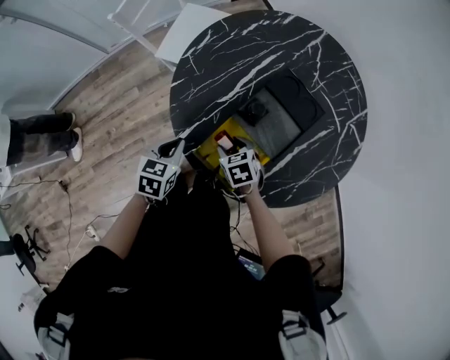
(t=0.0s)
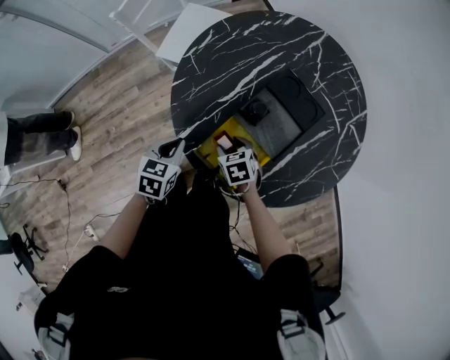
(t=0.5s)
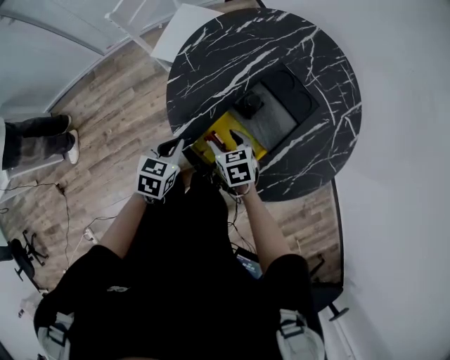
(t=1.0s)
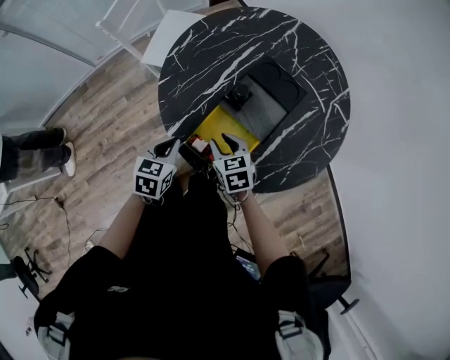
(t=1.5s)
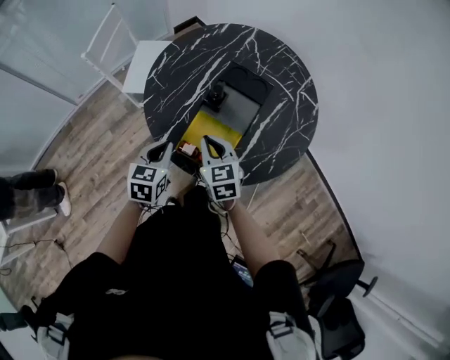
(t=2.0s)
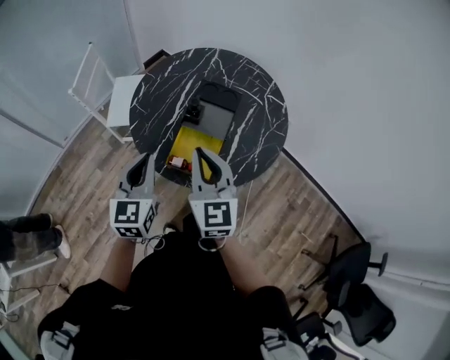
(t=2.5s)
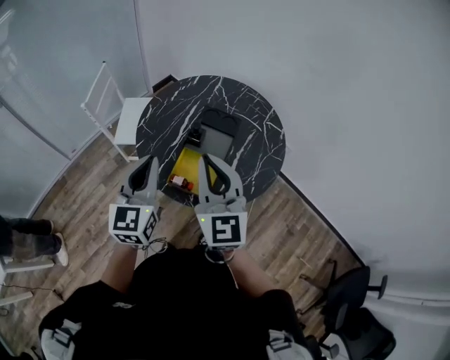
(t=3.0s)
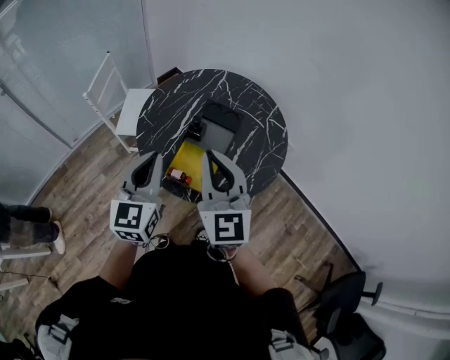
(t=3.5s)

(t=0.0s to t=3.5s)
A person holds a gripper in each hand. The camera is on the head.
t=0.0s - t=2.0s: The left gripper goes about 10 cm upward; the right gripper goes some 15 cm upward, turns by roughly 40 degrees, and closes its fingers.
t=2.0s - t=3.5s: Both grippers travel together upward, about 25 cm. The left gripper angles its fingers upward, by some 30 degrees, while the right gripper tilts its fingers approximately 30 degrees upward.

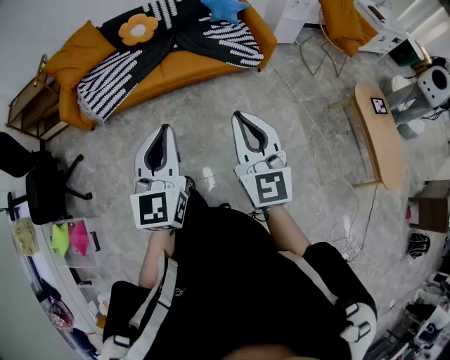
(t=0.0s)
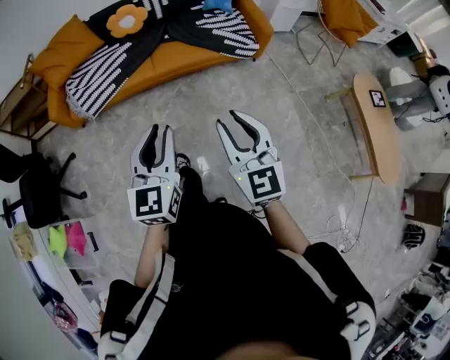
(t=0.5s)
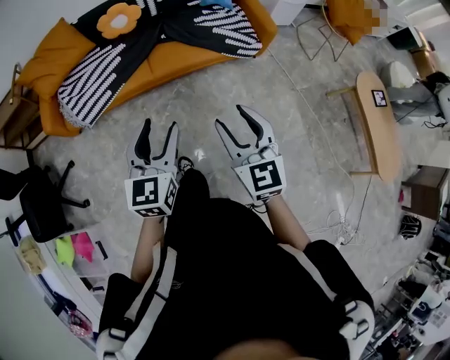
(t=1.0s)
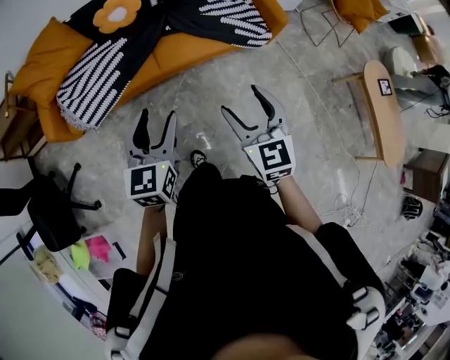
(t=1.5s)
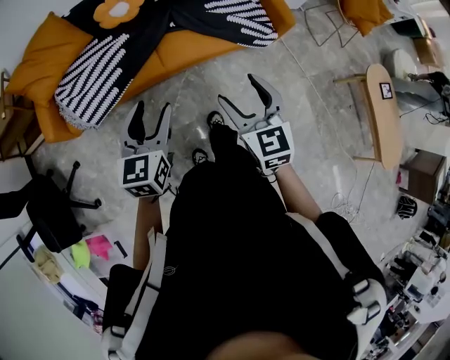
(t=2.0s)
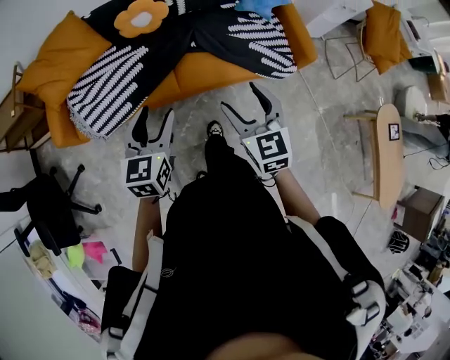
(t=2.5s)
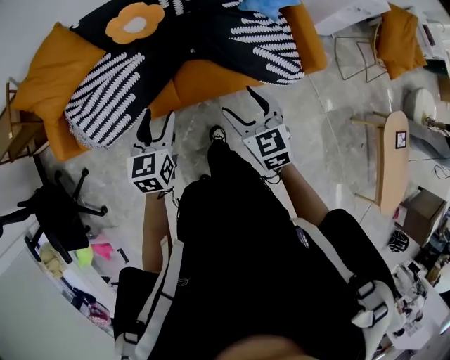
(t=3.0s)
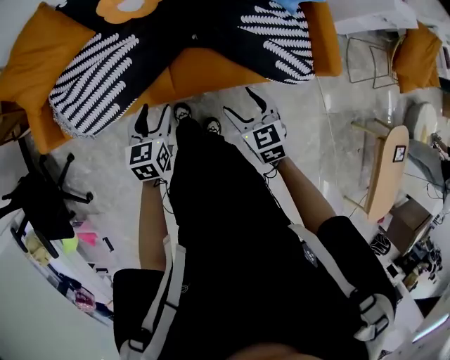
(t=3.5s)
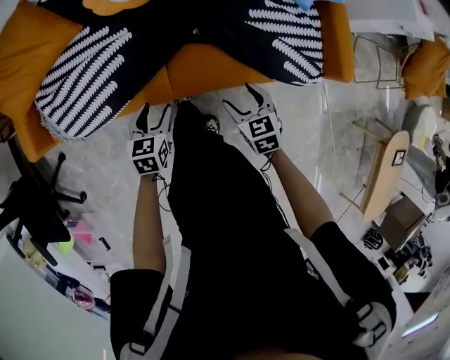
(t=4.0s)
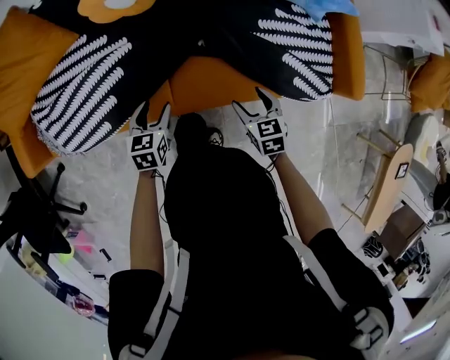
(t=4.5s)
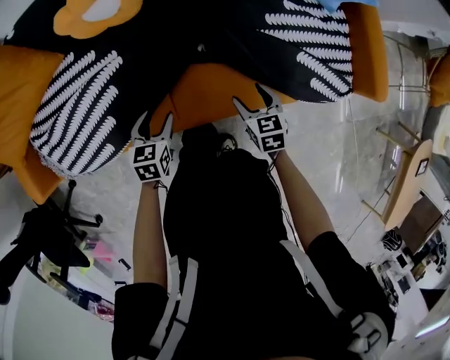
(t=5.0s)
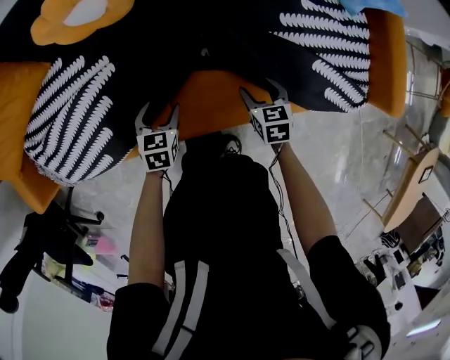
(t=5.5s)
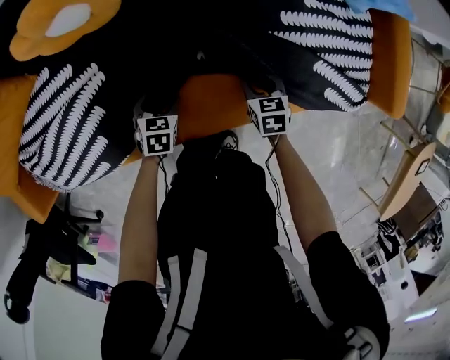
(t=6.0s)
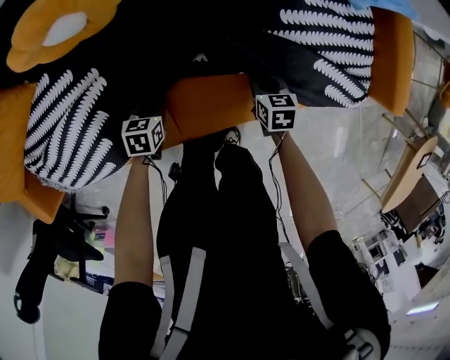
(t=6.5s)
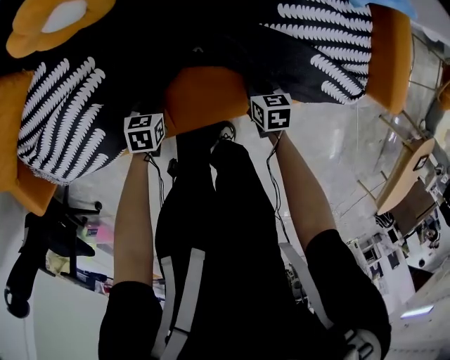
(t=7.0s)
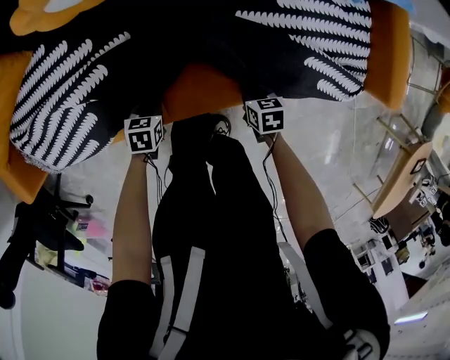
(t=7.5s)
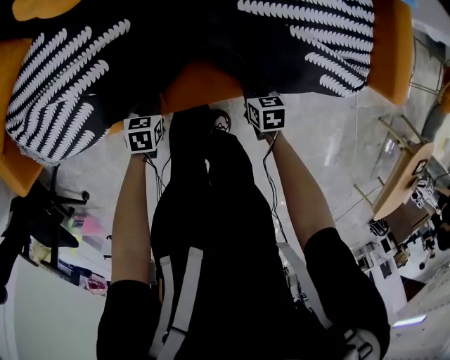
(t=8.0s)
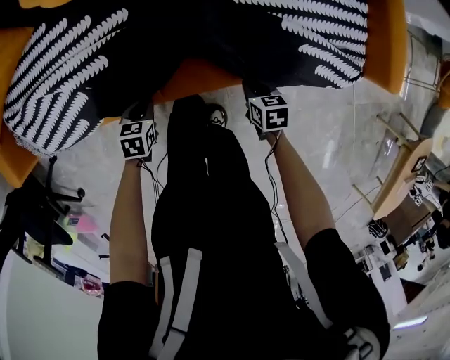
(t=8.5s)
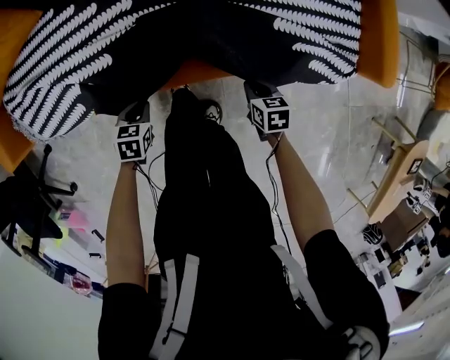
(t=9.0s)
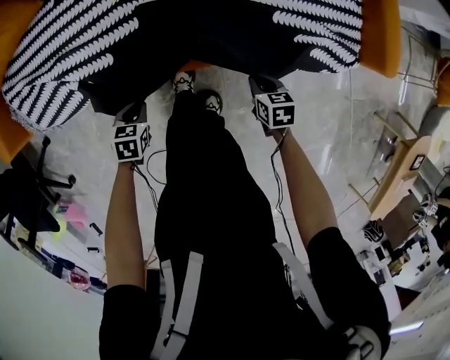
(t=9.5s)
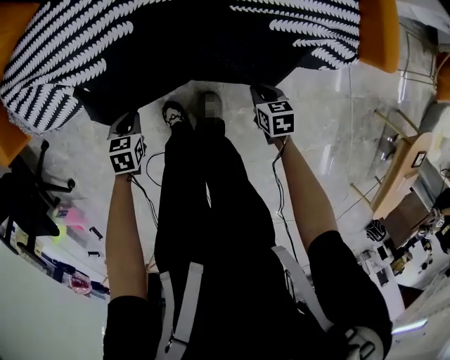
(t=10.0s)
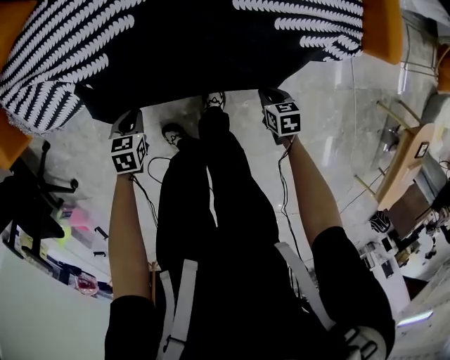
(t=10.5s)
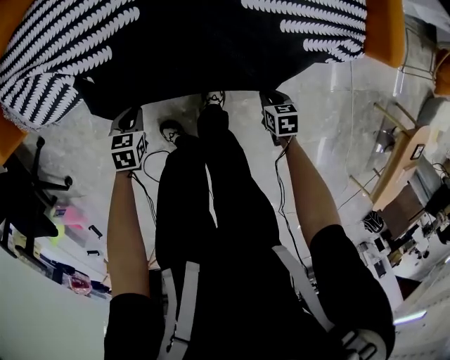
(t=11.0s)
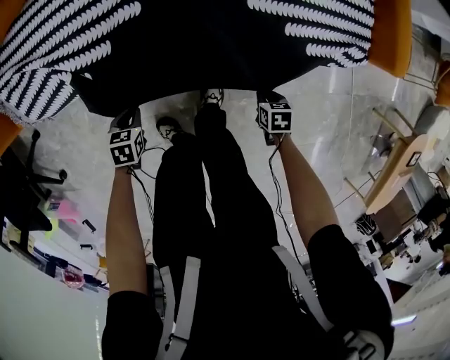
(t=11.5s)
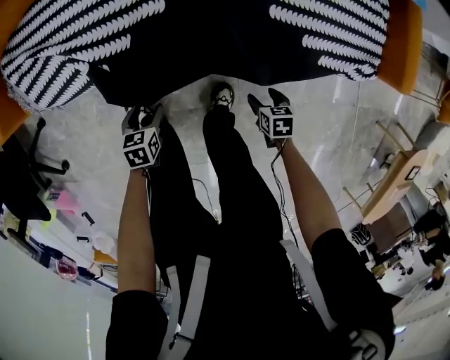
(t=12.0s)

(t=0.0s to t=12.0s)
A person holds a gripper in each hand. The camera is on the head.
t=0.0s - t=2.0s: The right gripper shifts some 35 cm forward, swivels roughly 20 degrees, and opens its fingers. The left gripper travels forward and to the left by some 40 cm, rotates approximately 20 degrees, and opens.
t=2.0s - t=4.0s: The right gripper heads forward and downward, covering approximately 50 cm, and swivels about 30 degrees. Meanwhile the left gripper shifts approximately 50 cm downward and forward, and swivels about 30 degrees.
t=4.0s - t=6.0s: Both grippers travel together downward and forward, some 35 cm. The right gripper changes its angle by approximately 20 degrees, and closes up. The left gripper turns by approximately 30 degrees.
t=6.0s - t=8.0s: Both grippers travel together backward, about 15 cm. The left gripper closes. The right gripper closes.
t=8.0s - t=10.0s: The left gripper shifts roughly 15 cm backward and upward, while the right gripper moves backward, approximately 15 cm.
t=10.0s - t=12.0s: The right gripper ends up roughly 5 cm from where it was, and opens up; the left gripper opens its fingers.

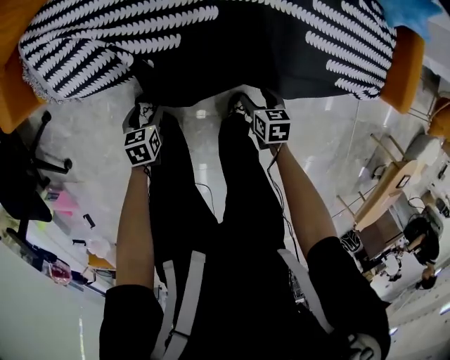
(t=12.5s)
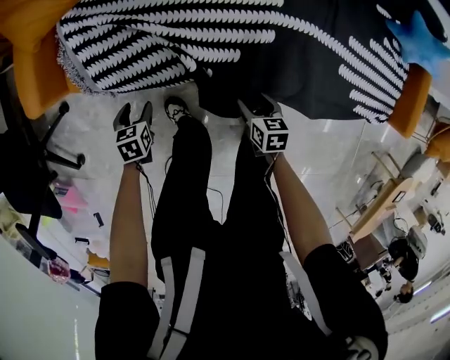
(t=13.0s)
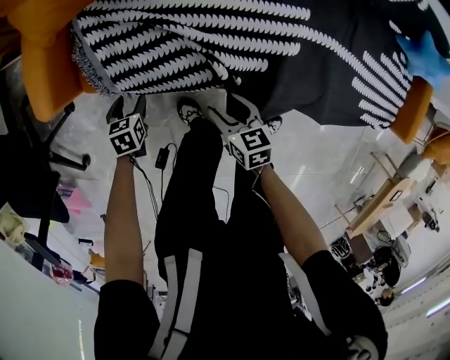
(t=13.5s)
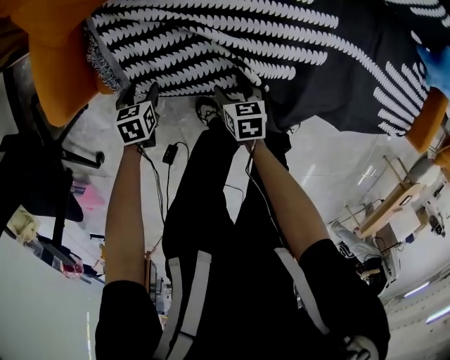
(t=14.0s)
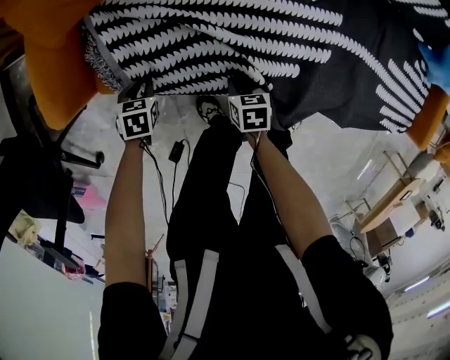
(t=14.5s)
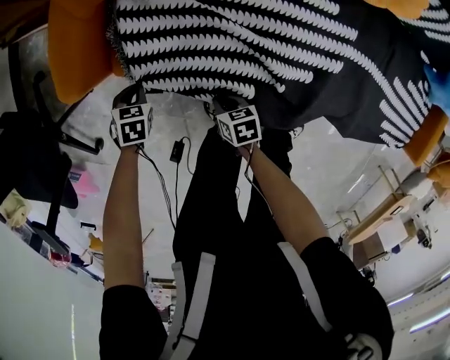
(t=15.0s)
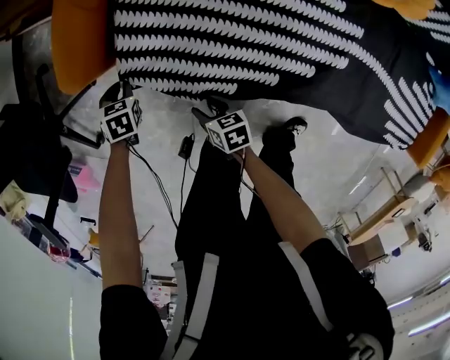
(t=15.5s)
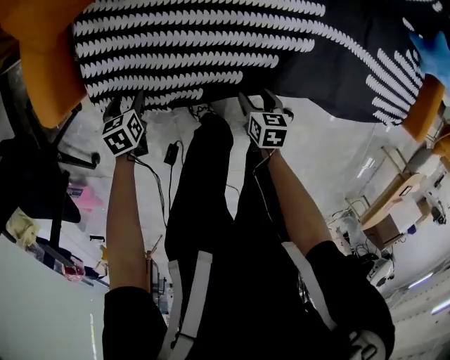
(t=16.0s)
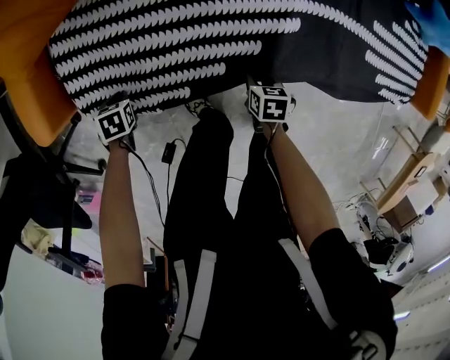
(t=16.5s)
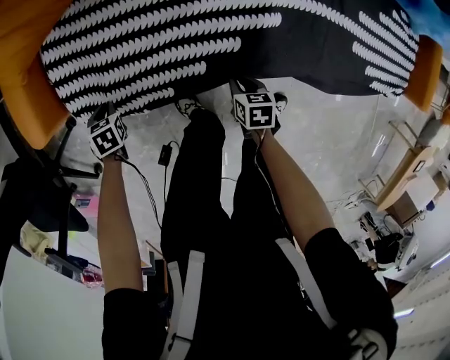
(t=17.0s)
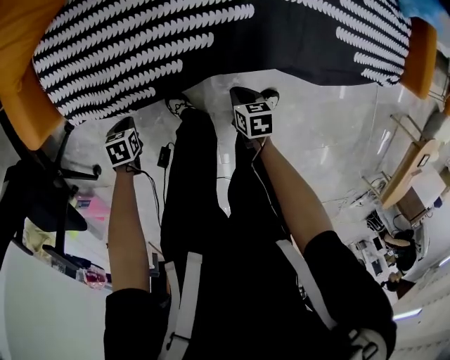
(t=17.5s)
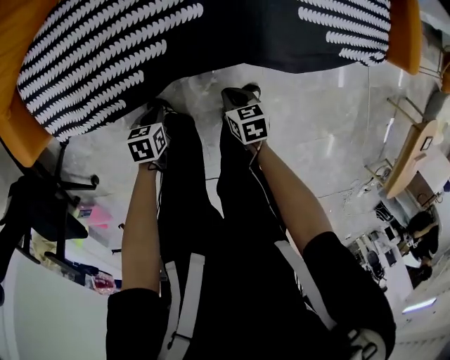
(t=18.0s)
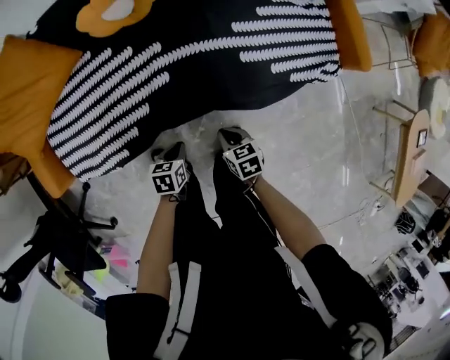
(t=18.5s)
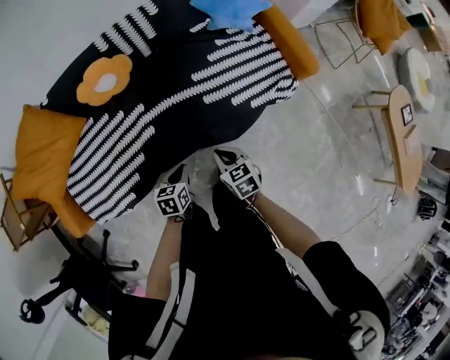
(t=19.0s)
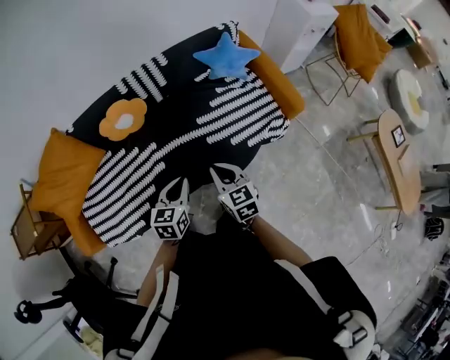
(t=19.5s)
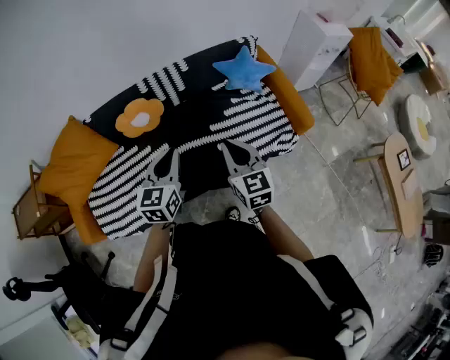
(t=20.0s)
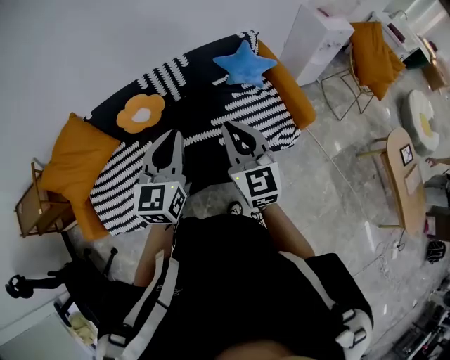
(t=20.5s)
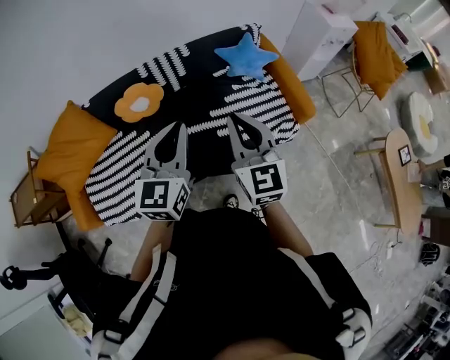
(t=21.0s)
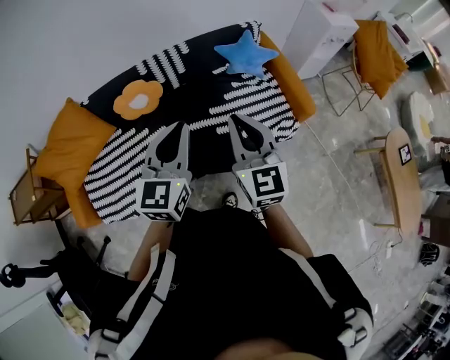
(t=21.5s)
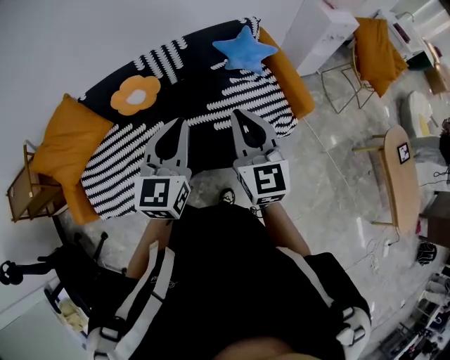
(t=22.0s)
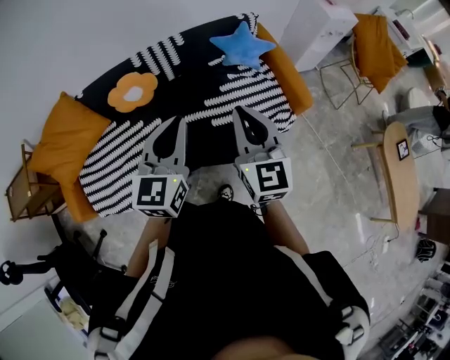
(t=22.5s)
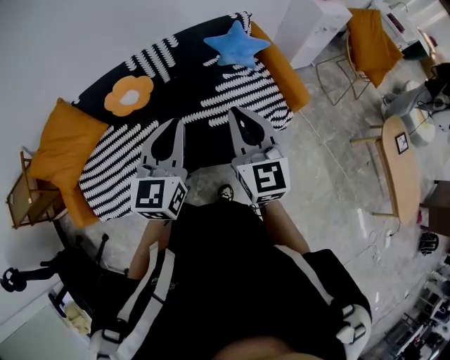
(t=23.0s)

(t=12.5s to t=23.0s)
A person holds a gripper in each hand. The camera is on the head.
t=12.5s - t=14.5s: Both grippers move to the left and forward, roughly 40 cm. The left gripper closes its fingers; the right gripper closes up.
t=14.5s - t=16.5s: The right gripper moves approximately 20 cm, and opens, then closes once more. Meanwhile the left gripper shifts about 5 cm upward, and opens and closes again.
t=16.5s - t=19.0s: The left gripper moves roughly 60 cm, and tilts its fingers approximately 30 degrees upward. The right gripper shifts by about 40 cm, and rotates some 20 degrees.
t=19.0s - t=21.0s: The two grippers go roughly 40 cm upward. The right gripper tilts its fingers about 40 degrees upward; the left gripper points its fingers some 40 degrees further upward.
t=21.0s - t=23.0s: The grippers move only a little.
